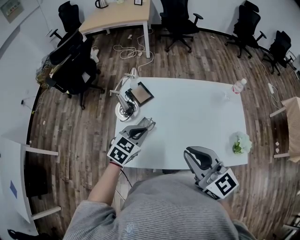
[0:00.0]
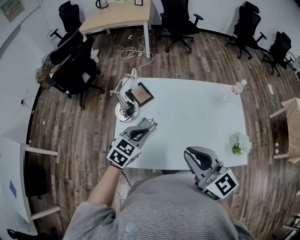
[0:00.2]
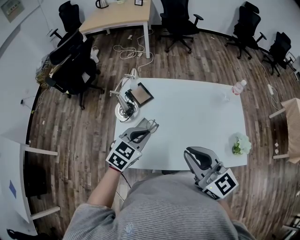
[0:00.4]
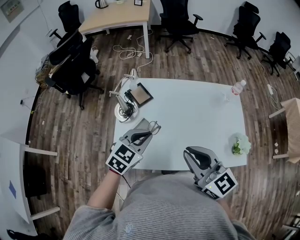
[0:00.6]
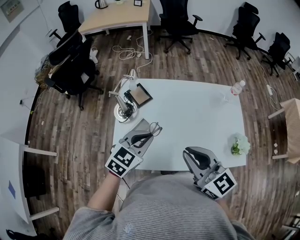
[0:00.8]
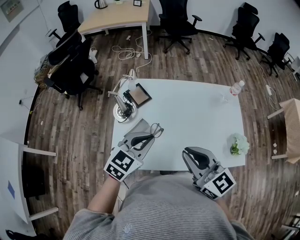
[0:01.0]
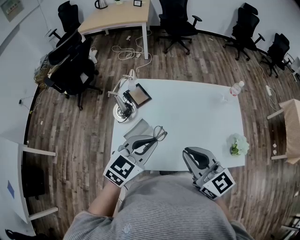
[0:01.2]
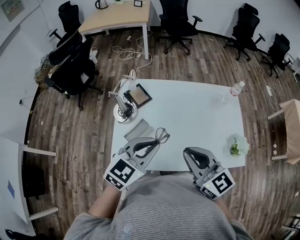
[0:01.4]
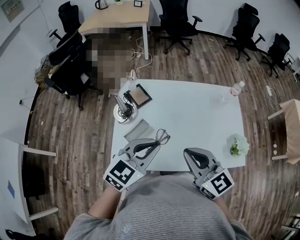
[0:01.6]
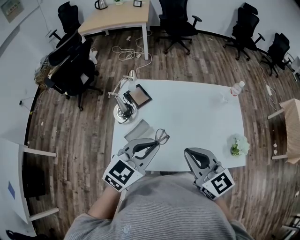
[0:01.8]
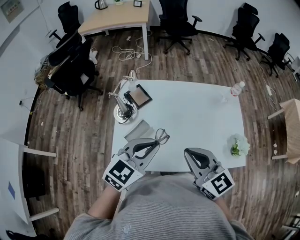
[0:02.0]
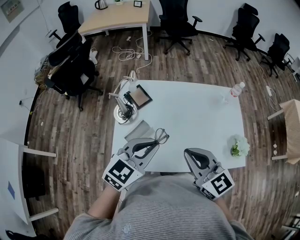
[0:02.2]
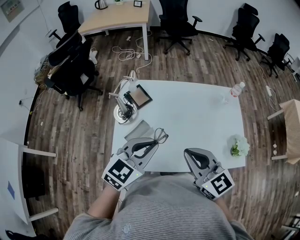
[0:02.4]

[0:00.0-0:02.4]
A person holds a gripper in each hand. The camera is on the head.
0:00.0 to 0:01.2: The left gripper goes approximately 10 cm upward and to the right.
0:01.2 to 0:02.4: There are only small adjustments of the grippers.

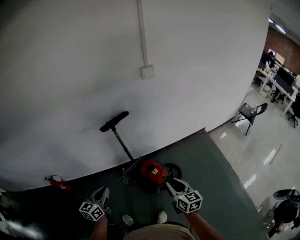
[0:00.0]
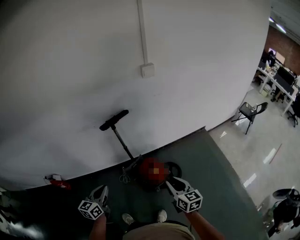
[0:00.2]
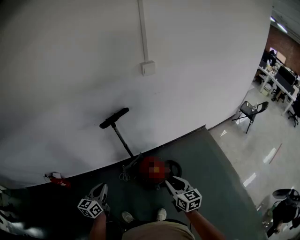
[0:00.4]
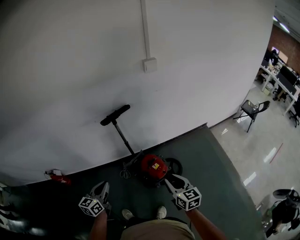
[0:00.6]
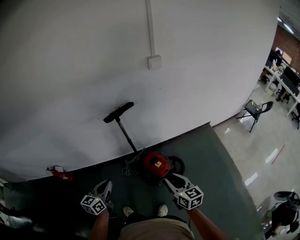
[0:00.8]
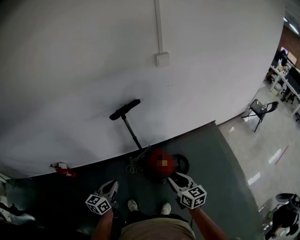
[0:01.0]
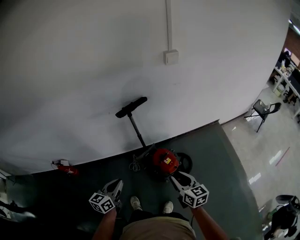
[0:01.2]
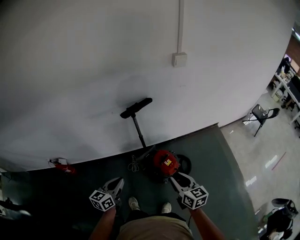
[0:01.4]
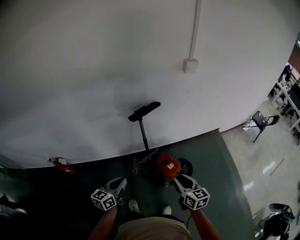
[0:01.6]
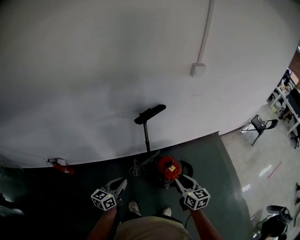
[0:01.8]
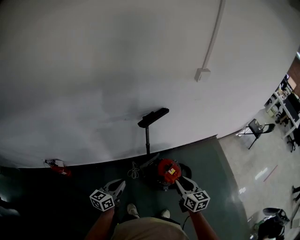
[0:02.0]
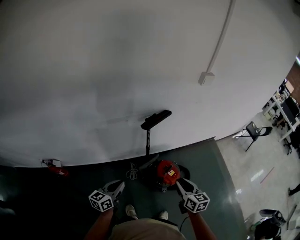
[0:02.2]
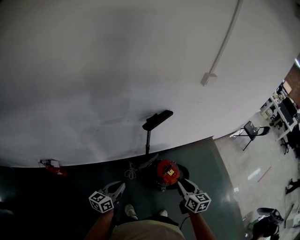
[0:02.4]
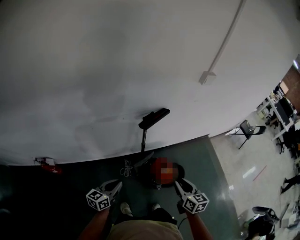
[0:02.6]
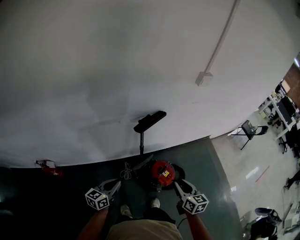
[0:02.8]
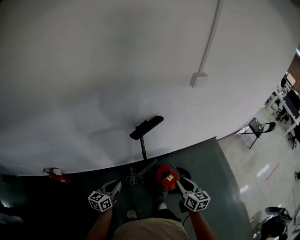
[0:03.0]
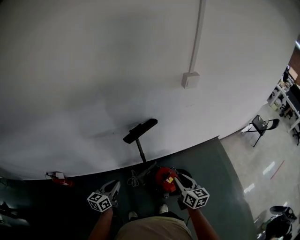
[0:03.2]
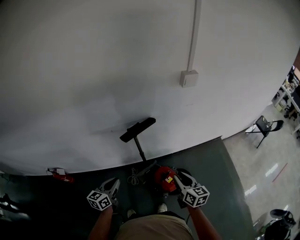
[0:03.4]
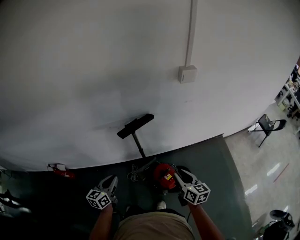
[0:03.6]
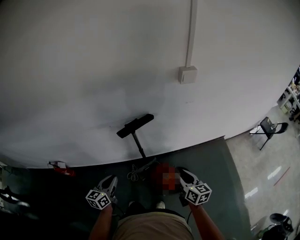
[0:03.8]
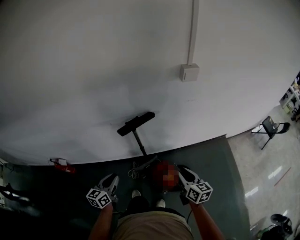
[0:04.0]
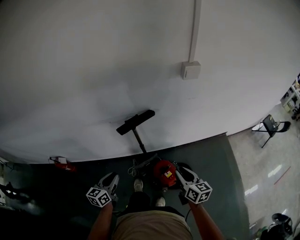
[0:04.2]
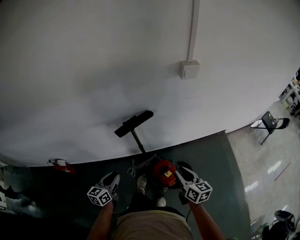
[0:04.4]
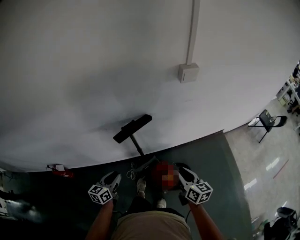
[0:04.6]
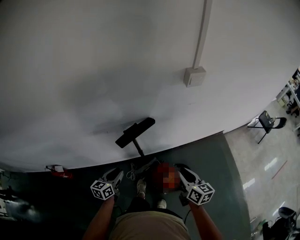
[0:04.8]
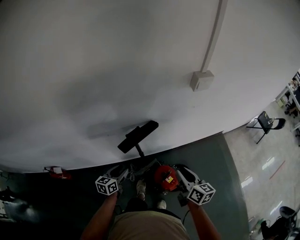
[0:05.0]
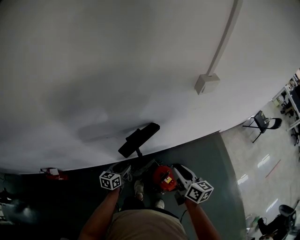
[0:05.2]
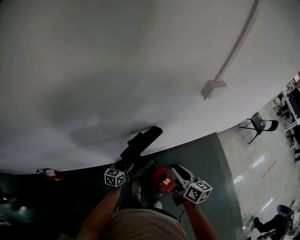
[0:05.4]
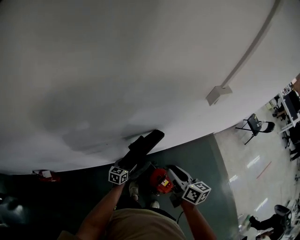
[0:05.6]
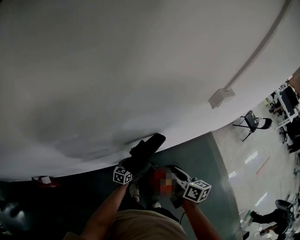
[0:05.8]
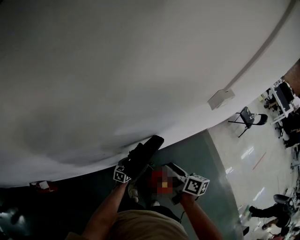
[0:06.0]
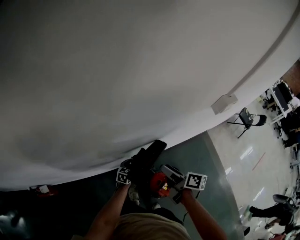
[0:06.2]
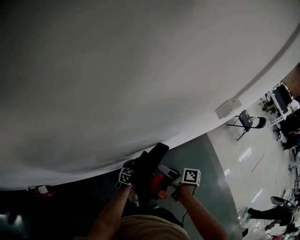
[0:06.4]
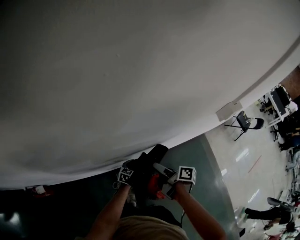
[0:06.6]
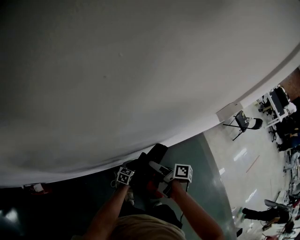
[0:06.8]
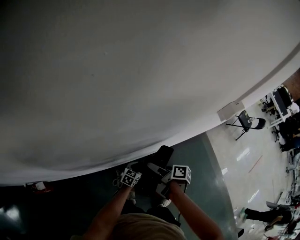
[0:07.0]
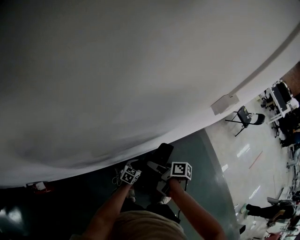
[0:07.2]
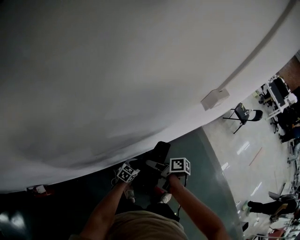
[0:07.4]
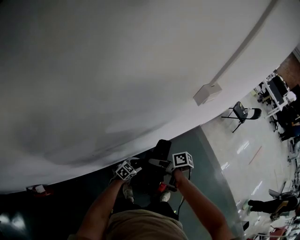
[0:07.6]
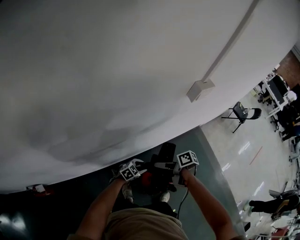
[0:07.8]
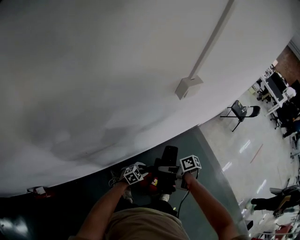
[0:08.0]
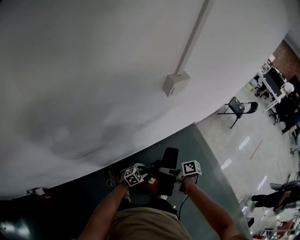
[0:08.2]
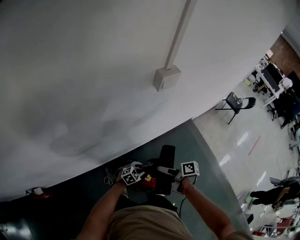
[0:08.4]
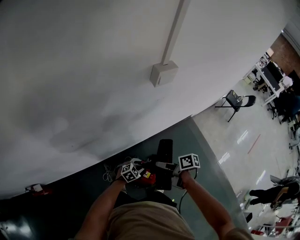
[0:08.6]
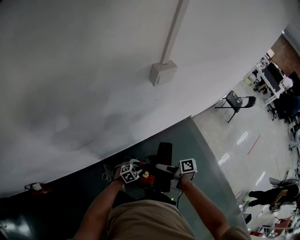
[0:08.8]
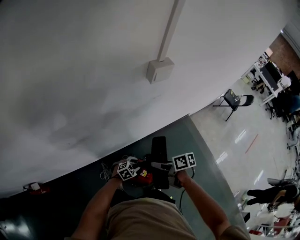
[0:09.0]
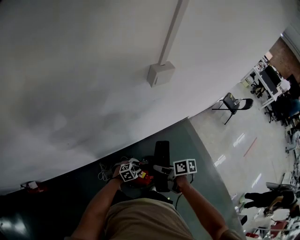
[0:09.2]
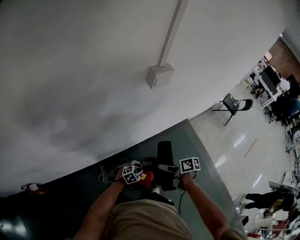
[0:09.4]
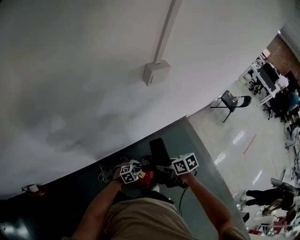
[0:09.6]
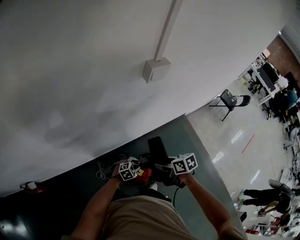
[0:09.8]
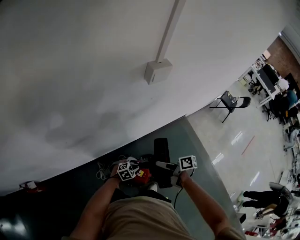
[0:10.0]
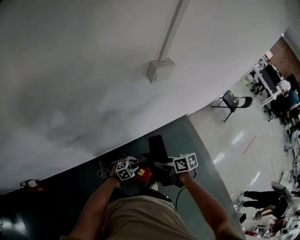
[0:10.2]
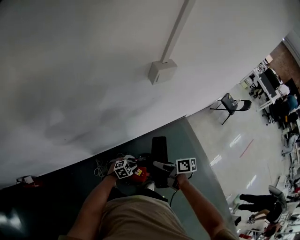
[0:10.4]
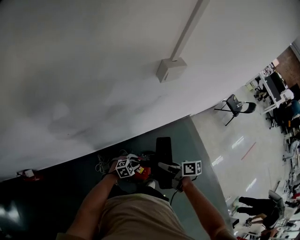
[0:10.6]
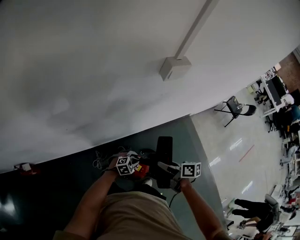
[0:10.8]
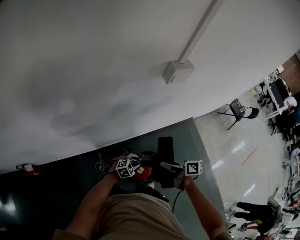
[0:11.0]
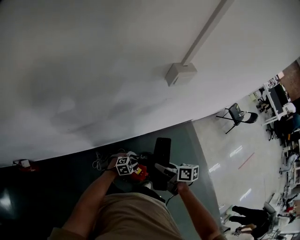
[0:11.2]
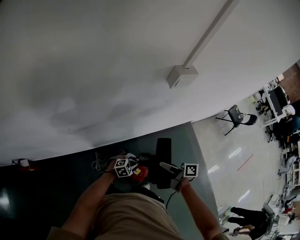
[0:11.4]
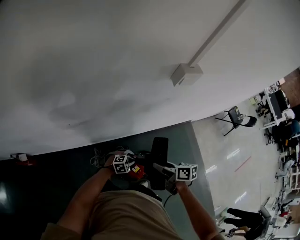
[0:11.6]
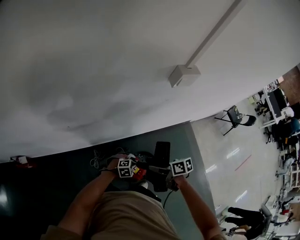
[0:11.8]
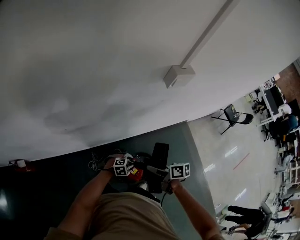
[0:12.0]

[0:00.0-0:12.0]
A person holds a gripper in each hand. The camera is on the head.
0:00.0 to 0:01.6: The right gripper travels to the left by about 15 cm, while the left gripper moves to the left, about 5 cm.
0:01.6 to 0:03.0: The right gripper goes about 10 cm forward; the left gripper moves forward and to the left, approximately 15 cm.
0:03.0 to 0:04.4: The right gripper heads to the right and forward, covering roughly 10 cm. The left gripper heads to the right, covering approximately 10 cm.
0:04.4 to 0:06.0: The left gripper heads forward and downward, covering about 40 cm, changes its angle by some 30 degrees, and opens up. Meanwhile the right gripper travels forward and to the left by some 25 cm, and changes its angle by approximately 30 degrees.
0:06.0 to 0:07.6: The left gripper changes place by roughly 10 cm, changes its angle by about 30 degrees, and closes its fingers; the right gripper heads downward, covering approximately 10 cm, and turns by about 40 degrees.
0:07.6 to 0:09.0: The right gripper shifts by about 20 cm; the left gripper changes place by some 15 cm, and rotates some 30 degrees.
0:10.4 to 0:12.0: The grippers move only a little.

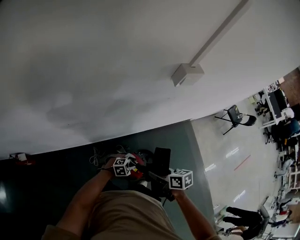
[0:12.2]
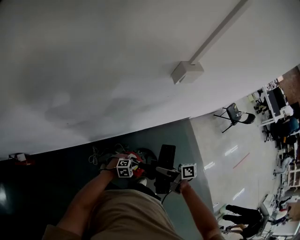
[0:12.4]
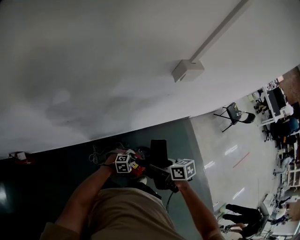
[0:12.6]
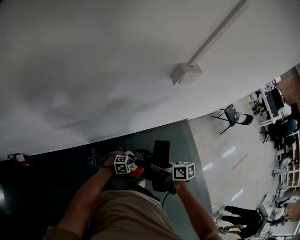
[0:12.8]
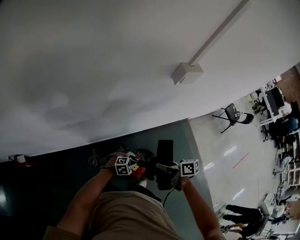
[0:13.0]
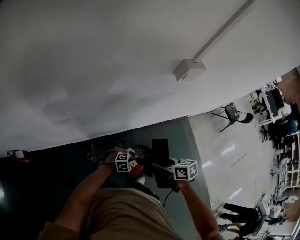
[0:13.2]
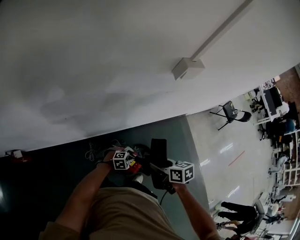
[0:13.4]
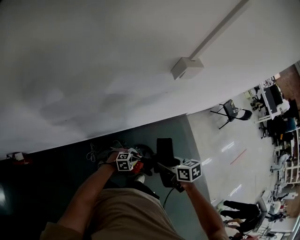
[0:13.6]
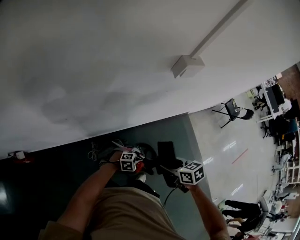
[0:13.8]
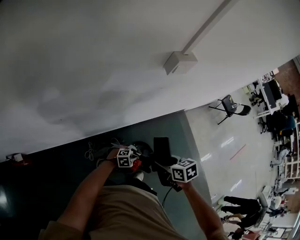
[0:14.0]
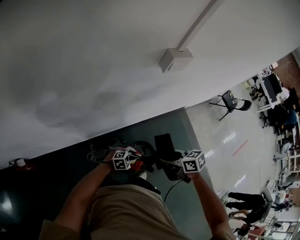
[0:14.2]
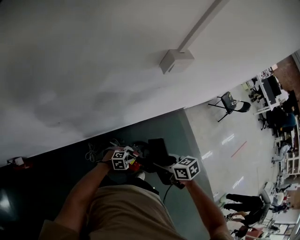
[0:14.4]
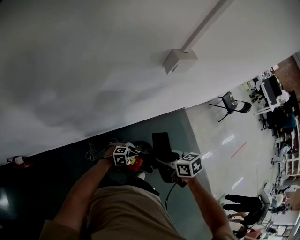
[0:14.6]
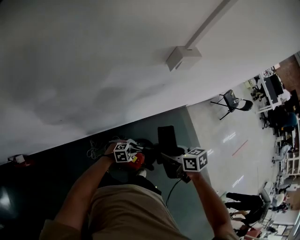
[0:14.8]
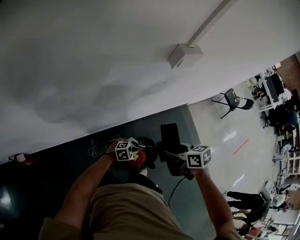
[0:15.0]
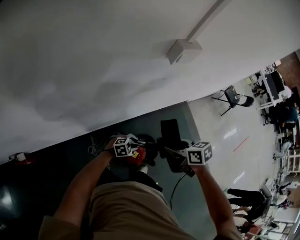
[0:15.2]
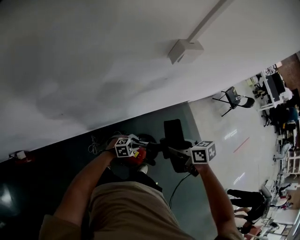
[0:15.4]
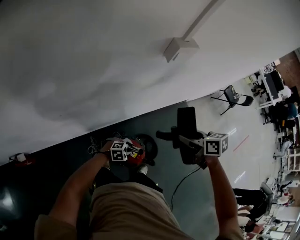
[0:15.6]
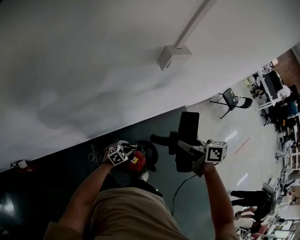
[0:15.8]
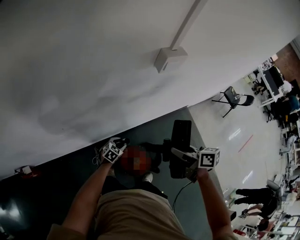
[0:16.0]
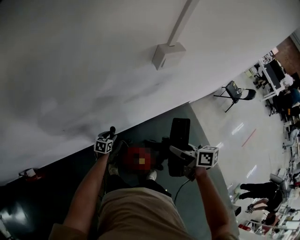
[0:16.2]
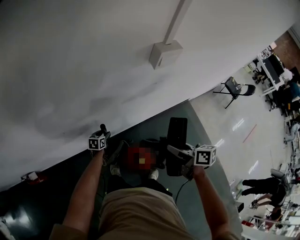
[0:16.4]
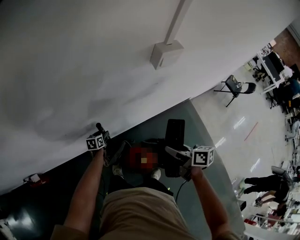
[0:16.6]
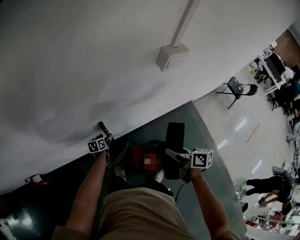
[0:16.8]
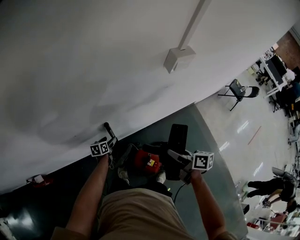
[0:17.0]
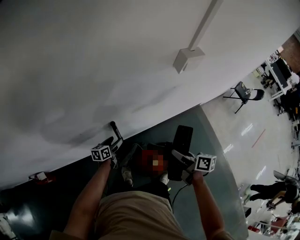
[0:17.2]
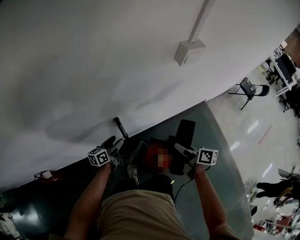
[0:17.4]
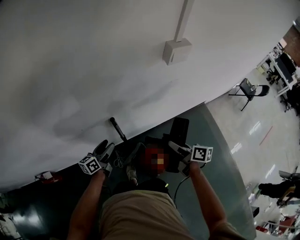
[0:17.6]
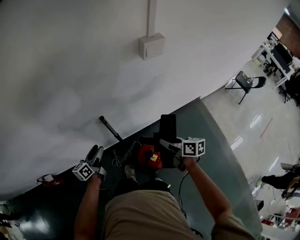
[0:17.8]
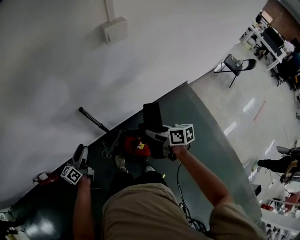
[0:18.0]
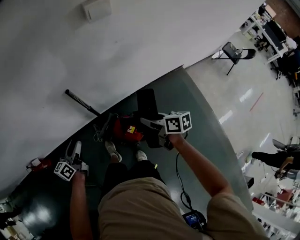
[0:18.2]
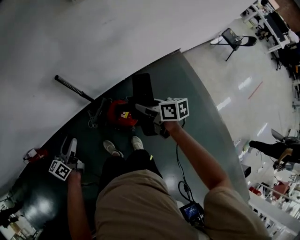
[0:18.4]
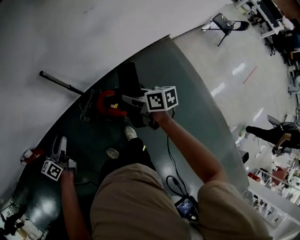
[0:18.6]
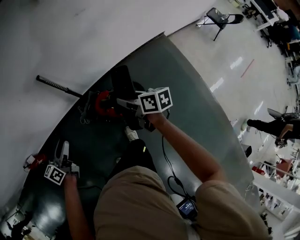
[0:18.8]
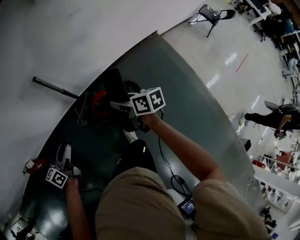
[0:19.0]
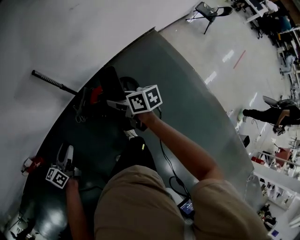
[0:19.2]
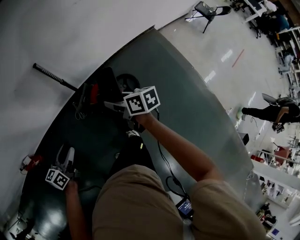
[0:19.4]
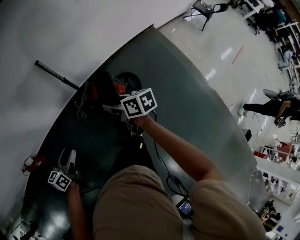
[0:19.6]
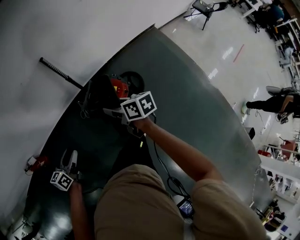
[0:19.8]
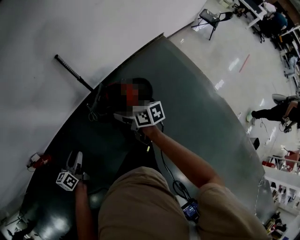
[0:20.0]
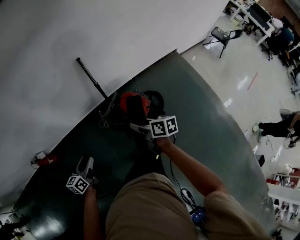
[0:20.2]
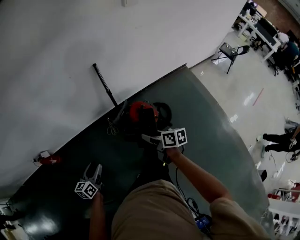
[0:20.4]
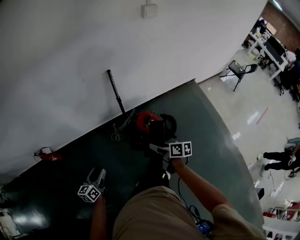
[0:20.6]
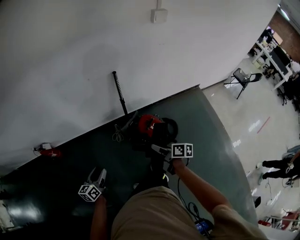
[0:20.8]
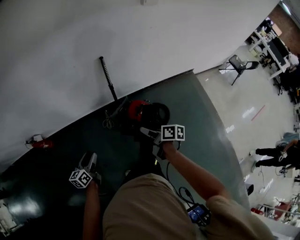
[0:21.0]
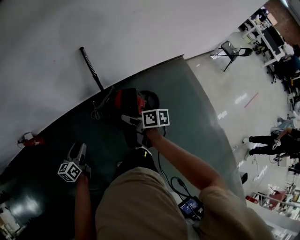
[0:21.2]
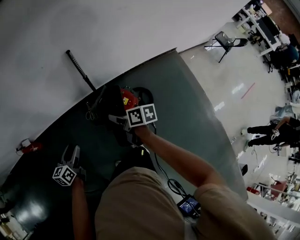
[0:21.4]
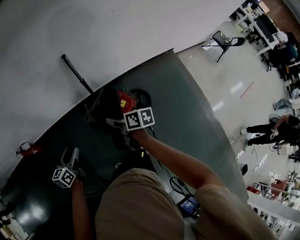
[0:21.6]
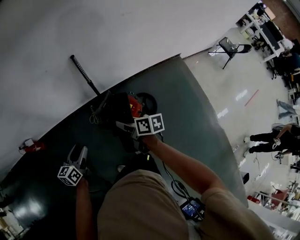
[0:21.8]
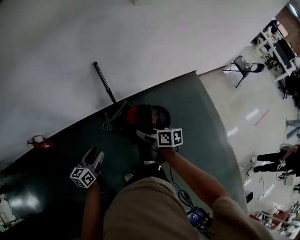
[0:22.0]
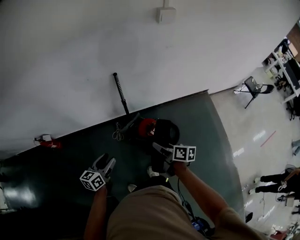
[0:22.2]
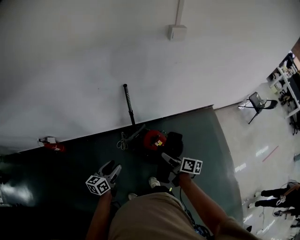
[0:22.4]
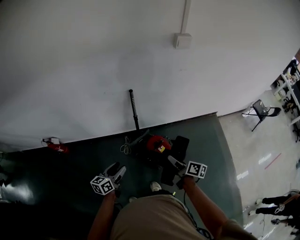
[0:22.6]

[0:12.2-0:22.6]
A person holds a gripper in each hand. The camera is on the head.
0:13.6 to 0:15.2: The grippers move only a little.
0:15.2 to 0:16.6: The right gripper travels upward and back again, about 10 cm each way, and rotates approximately 30 degrees; the left gripper moves roughly 30 cm, and rotates around the line of its fingers by some 70 degrees, counterclockwise from behind.
0:16.6 to 0:18.2: The left gripper goes approximately 30 cm backward and upward, and tilts its fingers some 30 degrees upward; the right gripper is displaced downward and backward by roughly 10 cm.
0:18.2 to 0:19.6: The left gripper moves backward, about 25 cm; the right gripper heads backward and to the left, covering about 20 cm.
0:19.6 to 0:21.2: The grippers both shift to the left by some 5 cm. The left gripper swivels roughly 20 degrees, while the right gripper reaches approximately 10 cm backward, then returns.
0:21.2 to 0:22.6: The two grippers go about 5 cm to the right.
